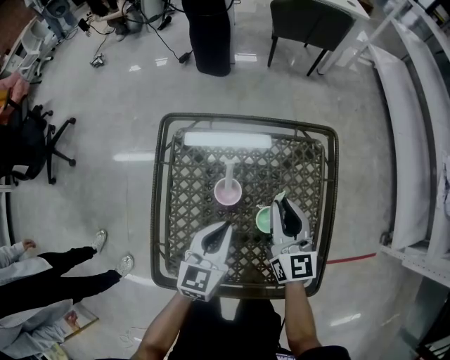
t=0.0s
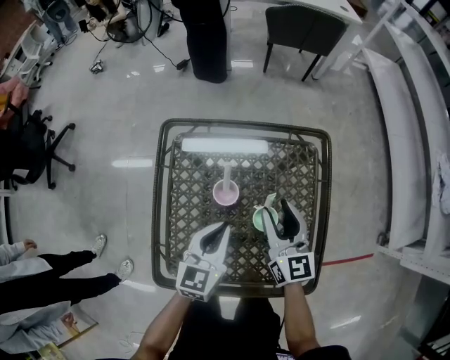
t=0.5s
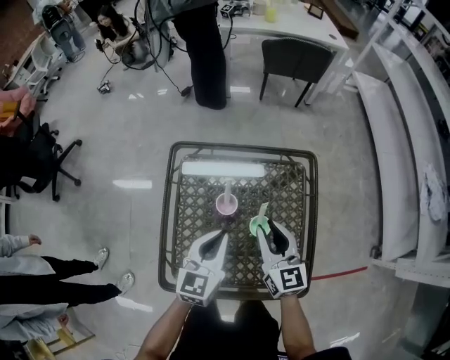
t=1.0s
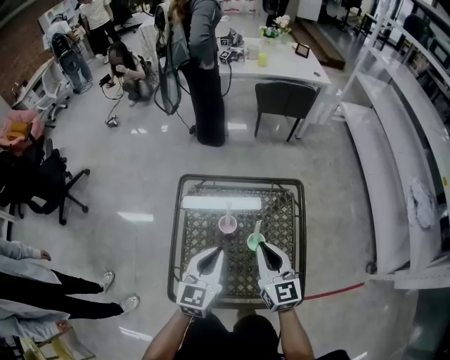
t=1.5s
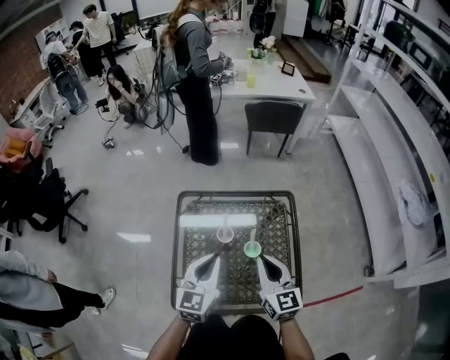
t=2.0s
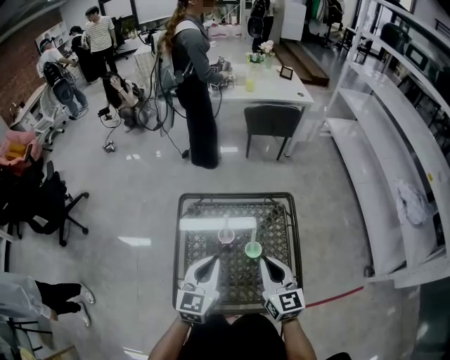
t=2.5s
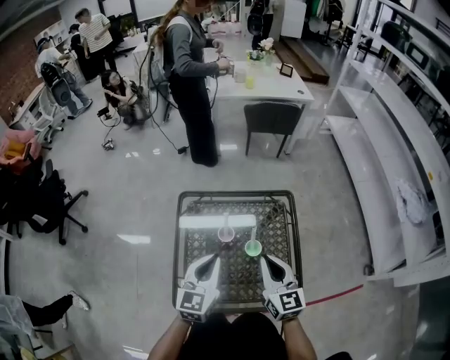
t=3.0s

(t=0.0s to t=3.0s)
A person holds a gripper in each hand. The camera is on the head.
t=0.0s - t=1.5s: The left gripper shifts about 20 cm upward, while the right gripper goes some 20 cm upward and backward, and opens and closes again.
t=1.5s - t=3.0s: The left gripper moves roughly 5 cm; the right gripper goes some 5 cm upward.

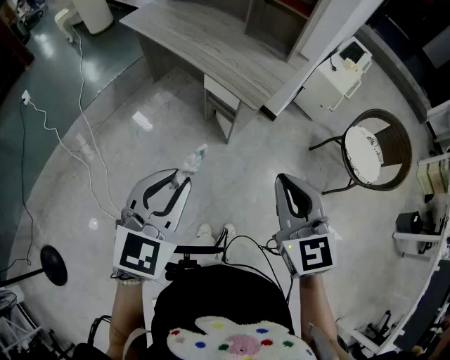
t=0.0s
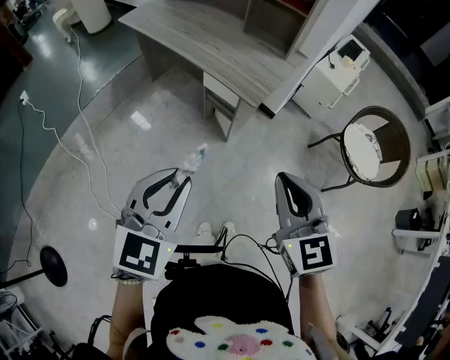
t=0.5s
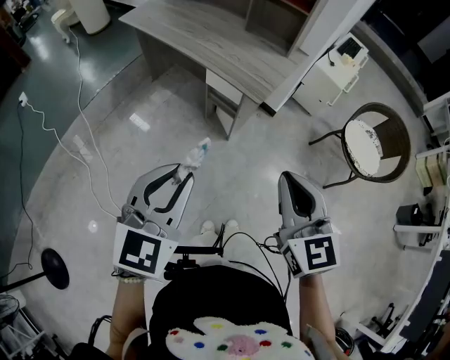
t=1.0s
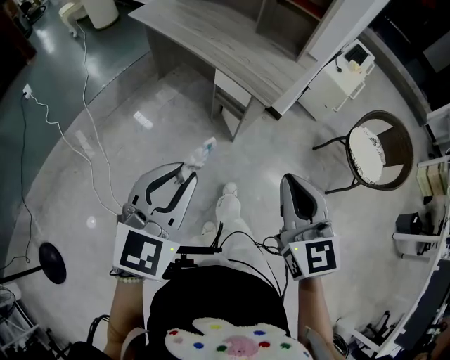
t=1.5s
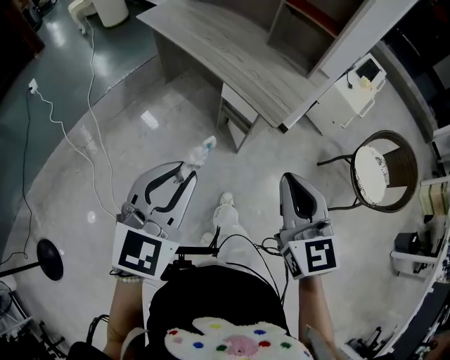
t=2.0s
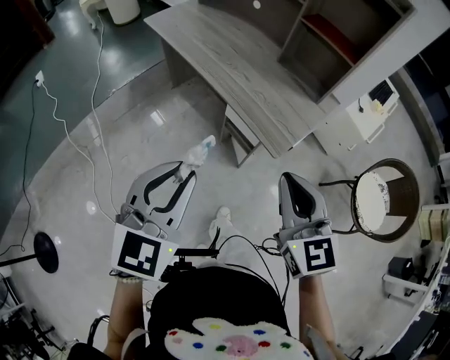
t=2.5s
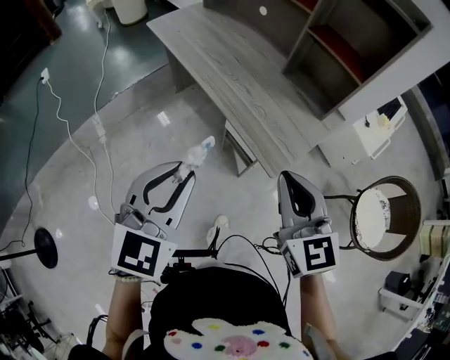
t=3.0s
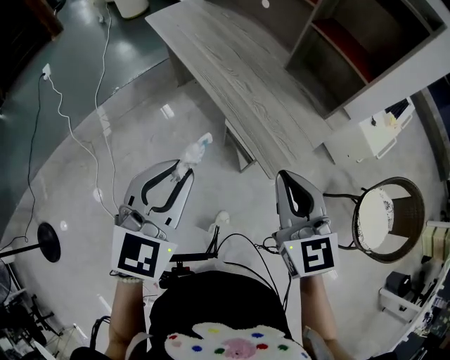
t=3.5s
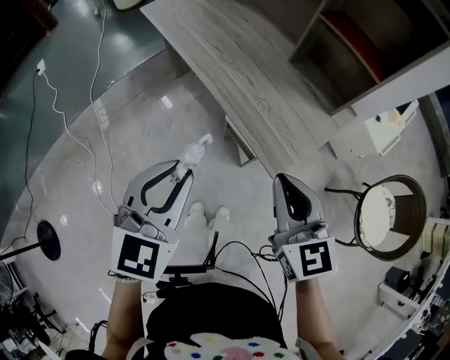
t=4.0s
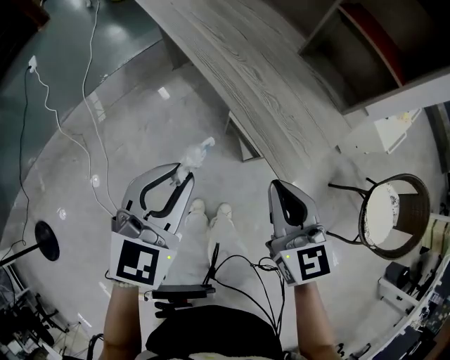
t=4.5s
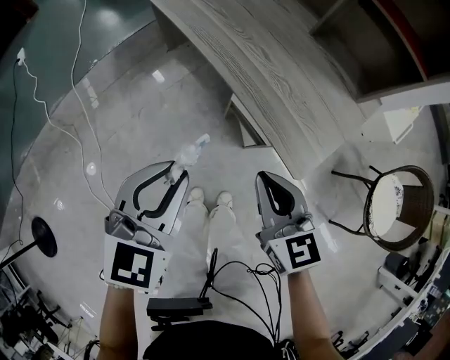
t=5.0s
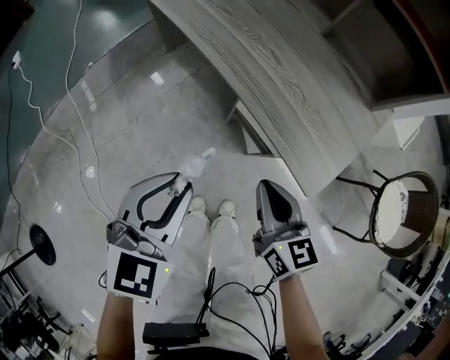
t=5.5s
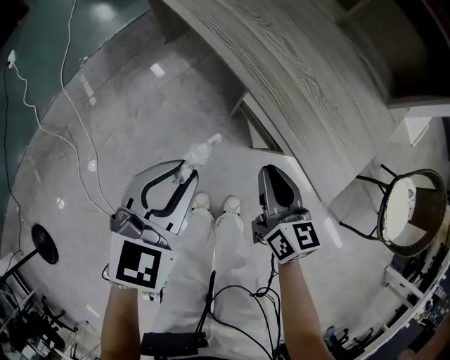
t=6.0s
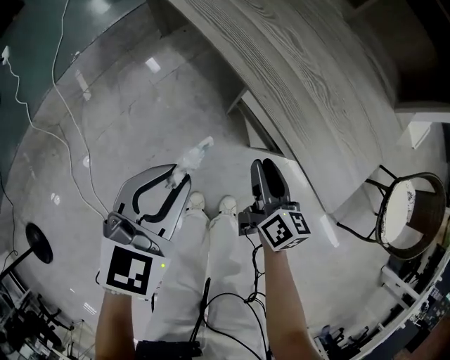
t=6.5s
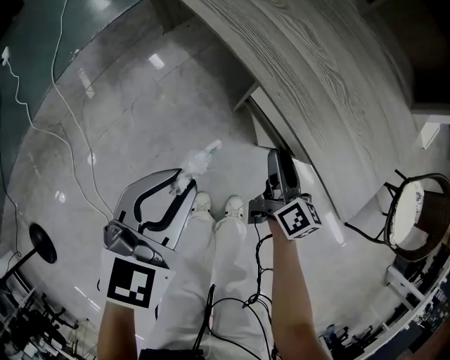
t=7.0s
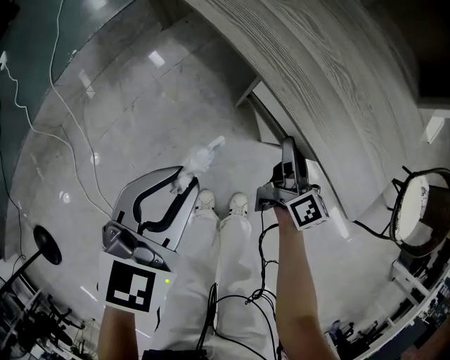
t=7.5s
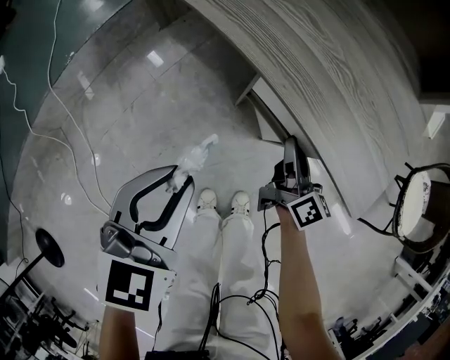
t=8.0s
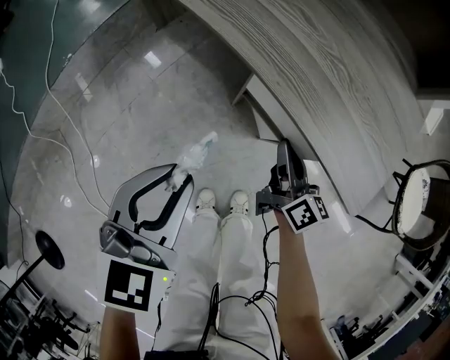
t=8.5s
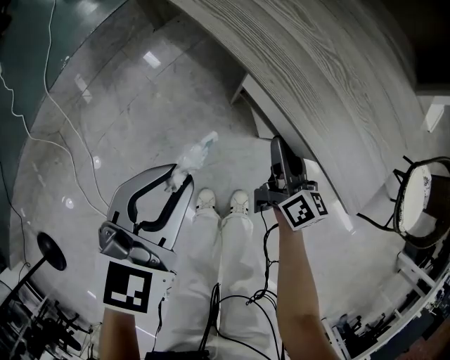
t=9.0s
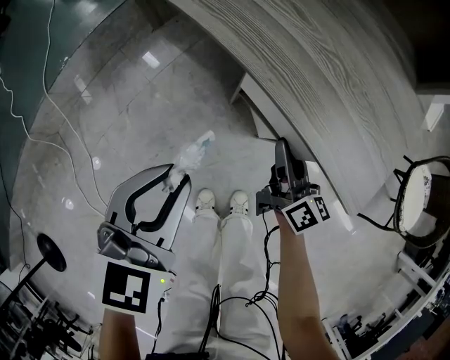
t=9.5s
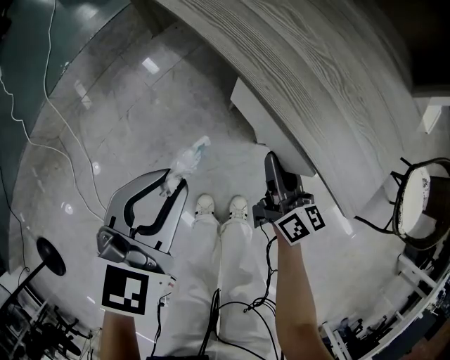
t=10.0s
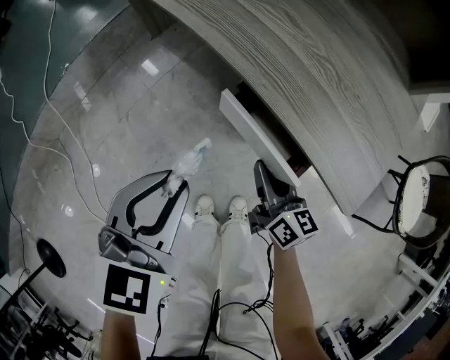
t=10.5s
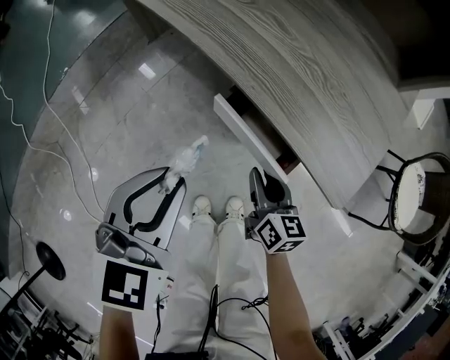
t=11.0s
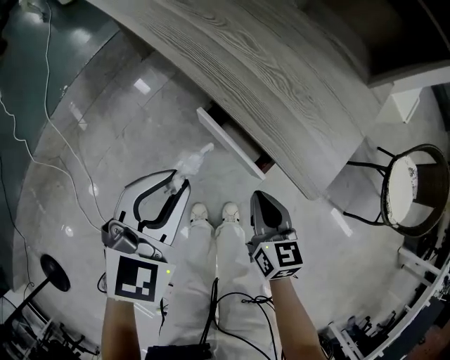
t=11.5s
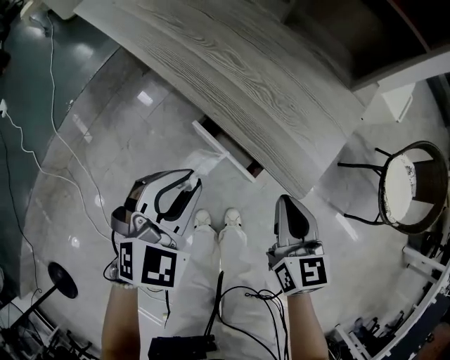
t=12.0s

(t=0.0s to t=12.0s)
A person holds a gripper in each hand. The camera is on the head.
t=0.0s - t=2.0s: The left gripper heads forward, covering some 5 cm. Meanwhile the right gripper is displaced forward and to the left by some 10 cm.
t=2.0s - t=4.0s: Both grippers move forward, about 20 cm.
t=4.0s - t=6.0s: Both grippers travel together downward, some 25 cm. The right gripper turns by some 30 degrees.
t=6.0s - t=8.0s: The right gripper shifts some 15 cm downward and forward, swivels some 30 degrees, and opens and closes again. The left gripper travels downward by approximately 5 cm.
t=8.0s - t=10.0s: There are only small adjustments of the grippers.
t=10.0s - t=12.0s: The right gripper is displaced upward and to the right by roughly 20 cm, and rotates some 30 degrees; the left gripper goes about 10 cm to the right and upward, and swivels roughly 20 degrees.

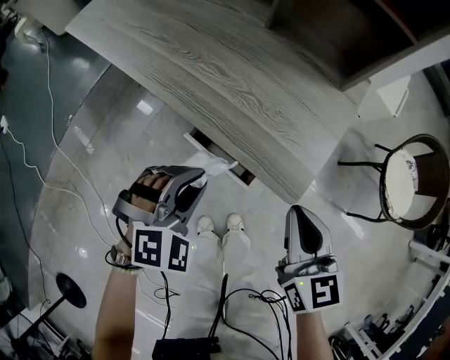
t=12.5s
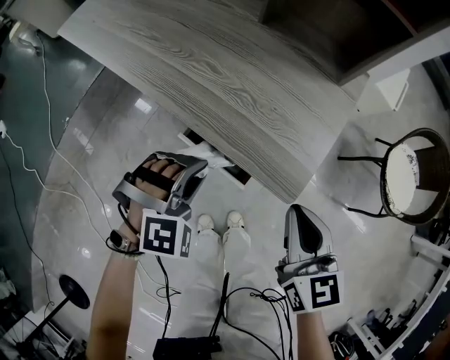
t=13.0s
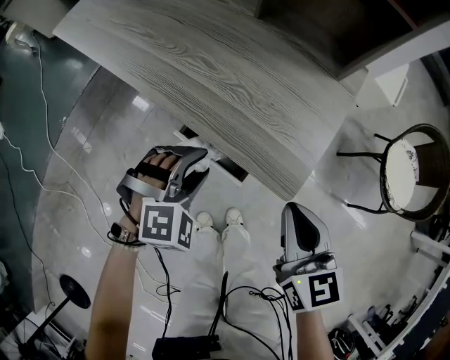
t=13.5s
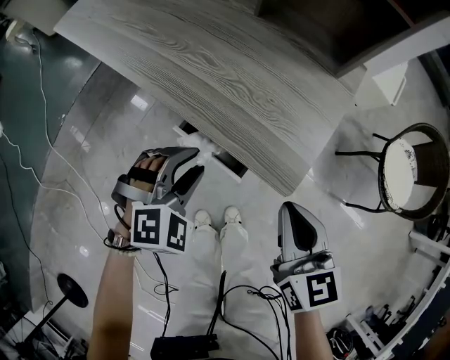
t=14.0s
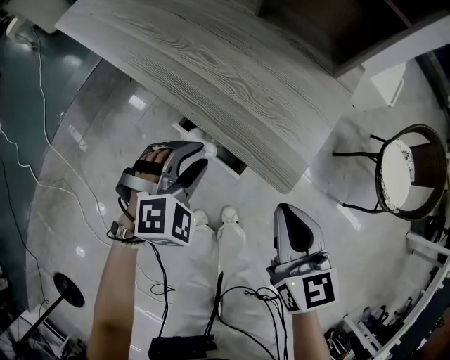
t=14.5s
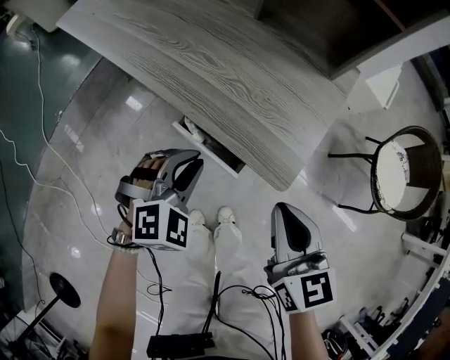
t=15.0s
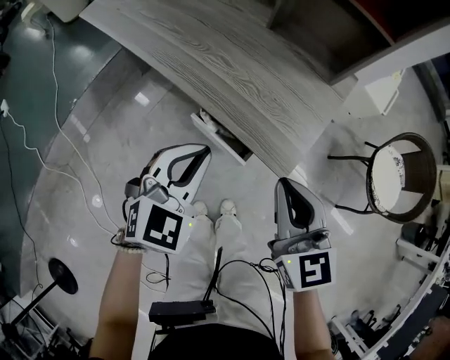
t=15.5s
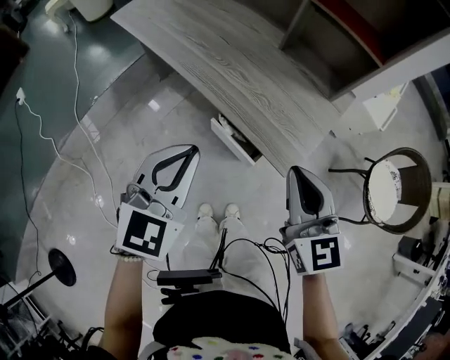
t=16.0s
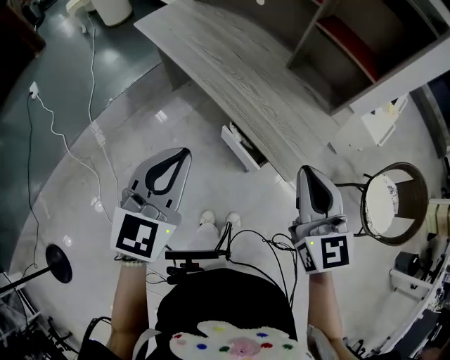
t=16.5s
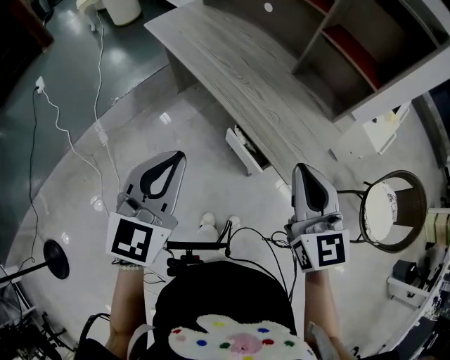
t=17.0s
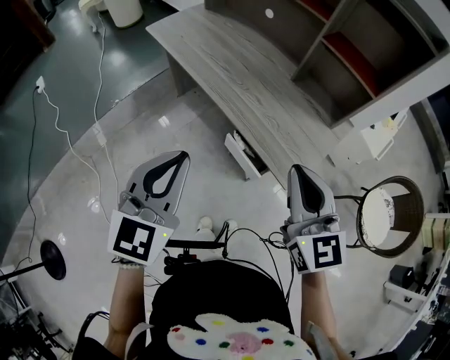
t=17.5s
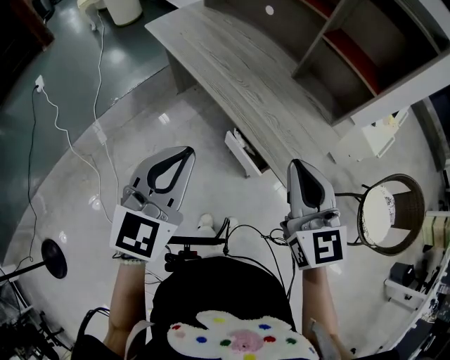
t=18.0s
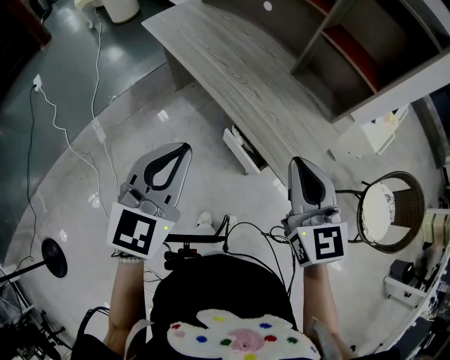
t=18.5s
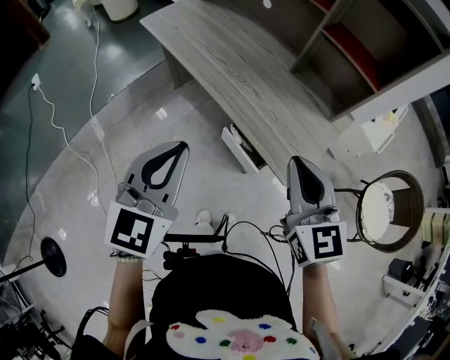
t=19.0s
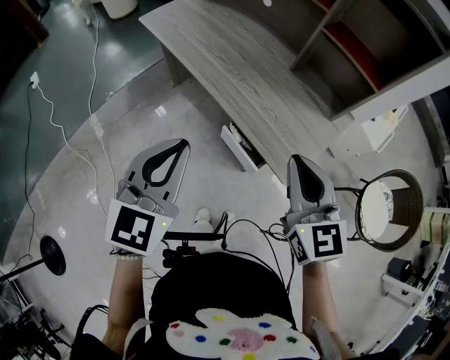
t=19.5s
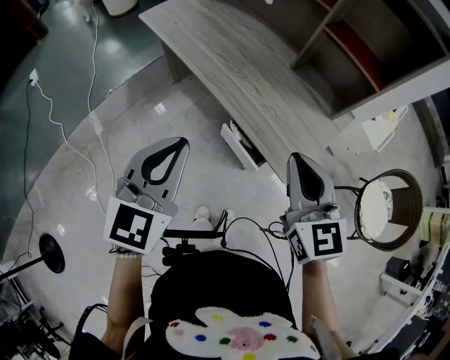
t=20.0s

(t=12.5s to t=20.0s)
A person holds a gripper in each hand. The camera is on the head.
t=12.5s - t=14.5s: The grippers make only small movements.
t=14.5s - t=16.5s: Both grippers travel together upward, some 25 cm. The right gripper rotates roughly 20 degrees, while the left gripper tips its fingers upward by roughly 30 degrees, and closes.
t=16.5s - t=20.0s: The grippers stay close to where they were, moving slightly.

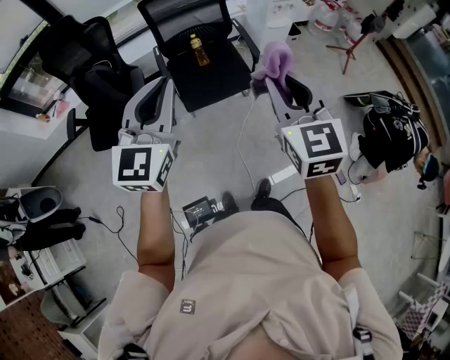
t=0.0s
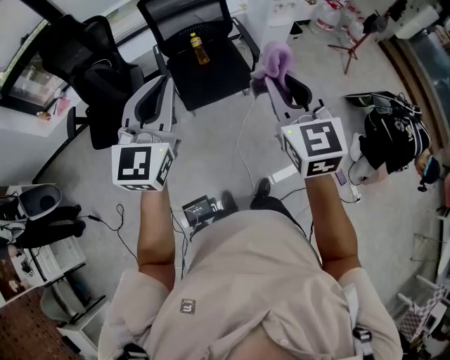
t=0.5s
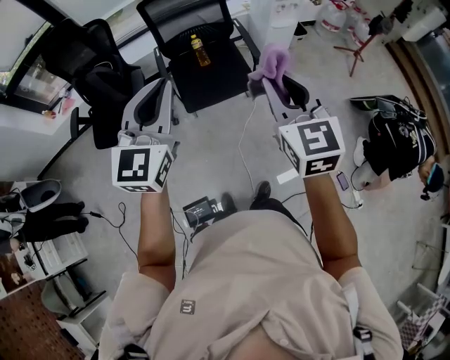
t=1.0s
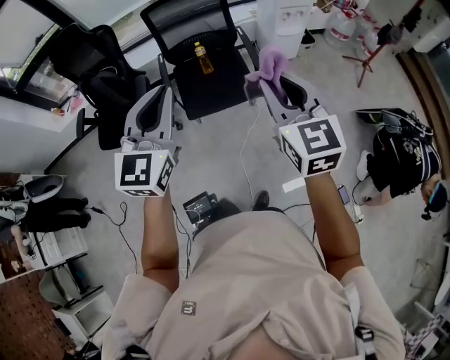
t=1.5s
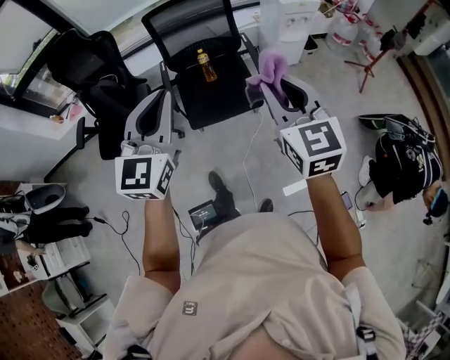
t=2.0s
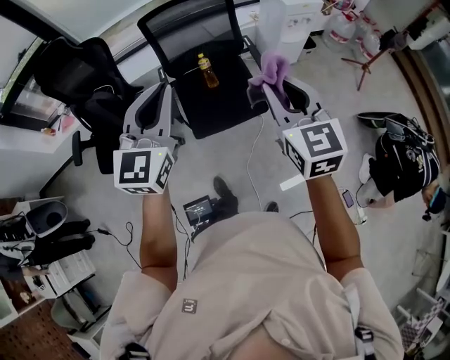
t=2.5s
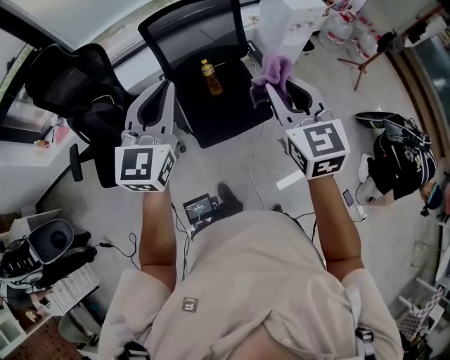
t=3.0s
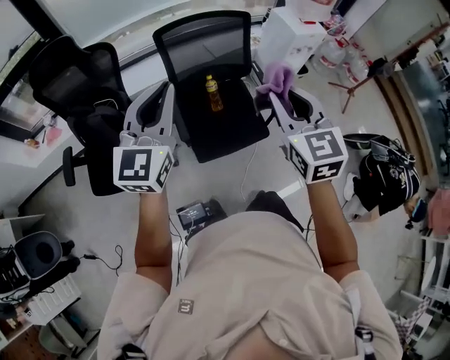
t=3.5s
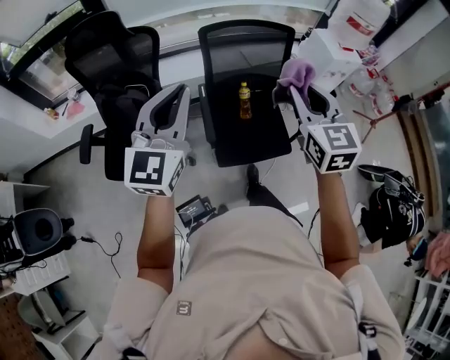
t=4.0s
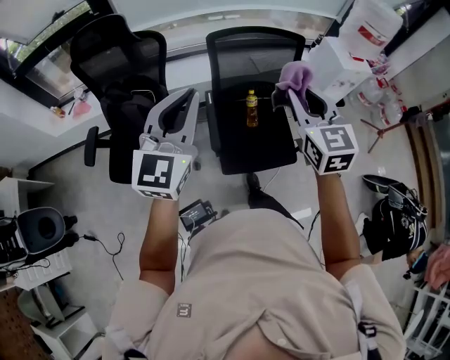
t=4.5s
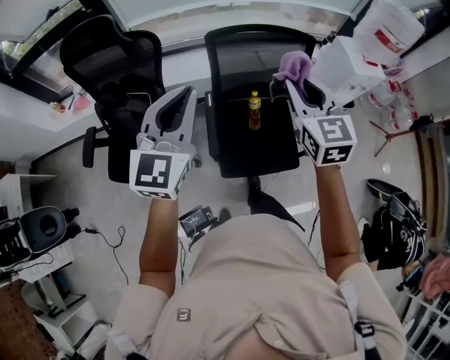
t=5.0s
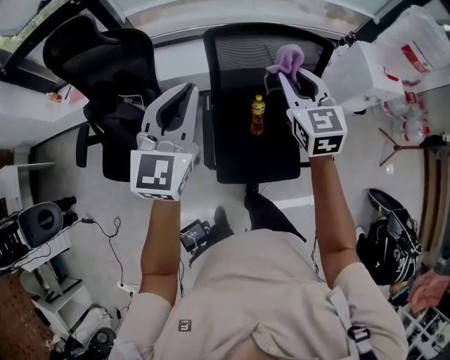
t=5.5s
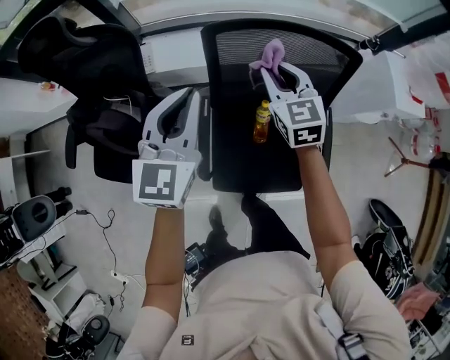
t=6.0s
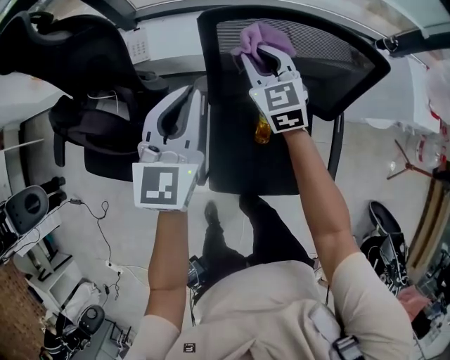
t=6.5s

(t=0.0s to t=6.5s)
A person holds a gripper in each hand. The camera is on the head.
t=0.0s - t=2.0s: Both grippers travel together forward and to the right, roughly 10 cm.
t=2.0s - t=4.5s: The left gripper moves to the left and forward, about 35 cm, while the right gripper is displaced forward and to the left by roughly 35 cm.
t=4.5s - t=6.5s: The two grippers go some 50 cm forward and downward. The left gripper rotates roughly 30 degrees; the right gripper swivels roughly 20 degrees.
